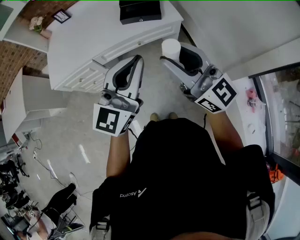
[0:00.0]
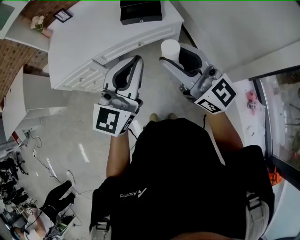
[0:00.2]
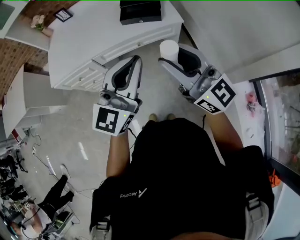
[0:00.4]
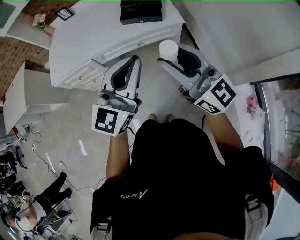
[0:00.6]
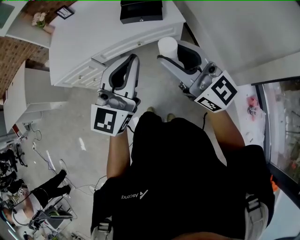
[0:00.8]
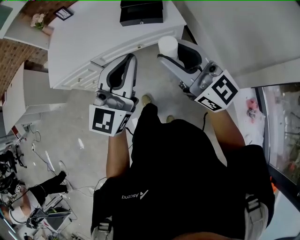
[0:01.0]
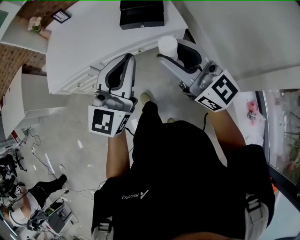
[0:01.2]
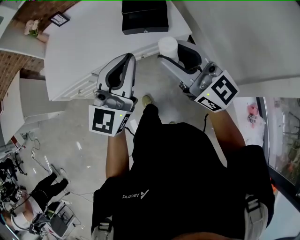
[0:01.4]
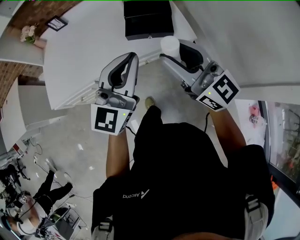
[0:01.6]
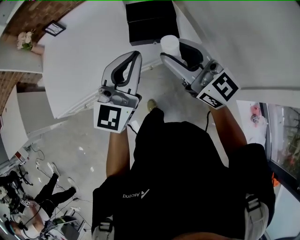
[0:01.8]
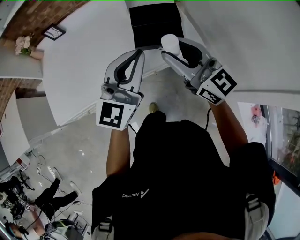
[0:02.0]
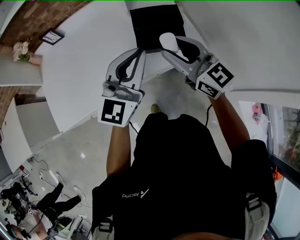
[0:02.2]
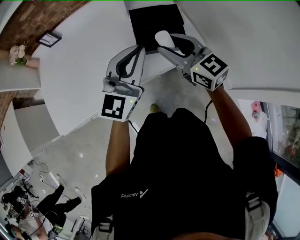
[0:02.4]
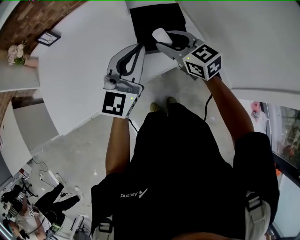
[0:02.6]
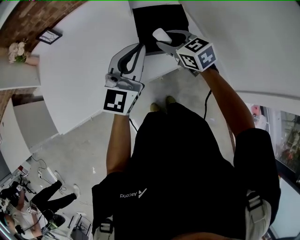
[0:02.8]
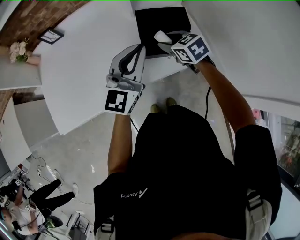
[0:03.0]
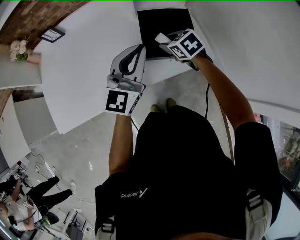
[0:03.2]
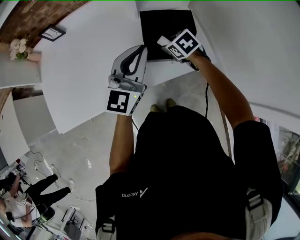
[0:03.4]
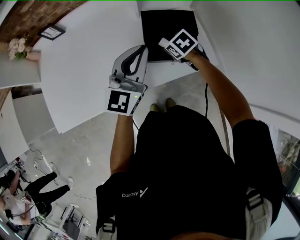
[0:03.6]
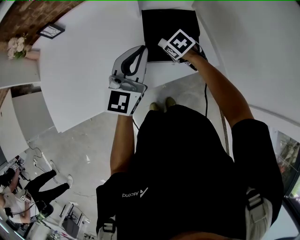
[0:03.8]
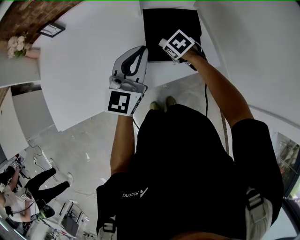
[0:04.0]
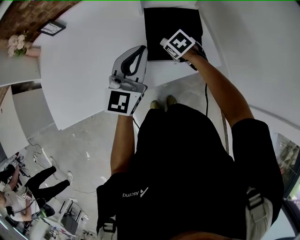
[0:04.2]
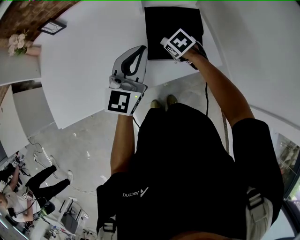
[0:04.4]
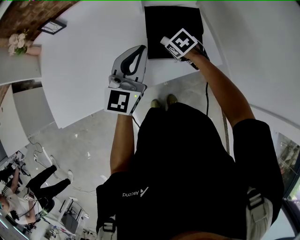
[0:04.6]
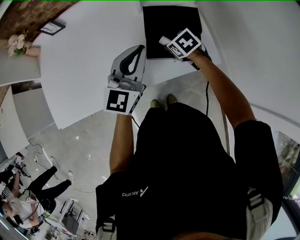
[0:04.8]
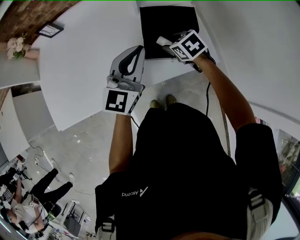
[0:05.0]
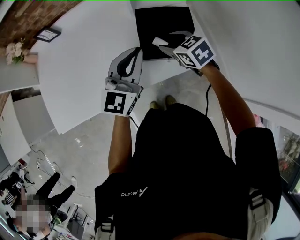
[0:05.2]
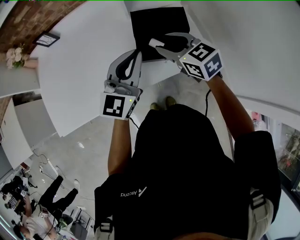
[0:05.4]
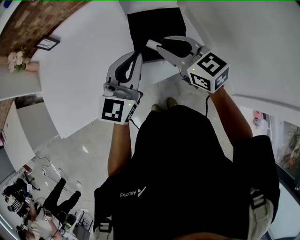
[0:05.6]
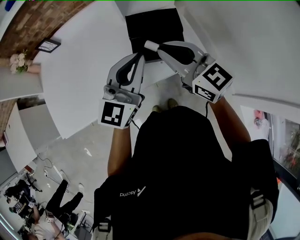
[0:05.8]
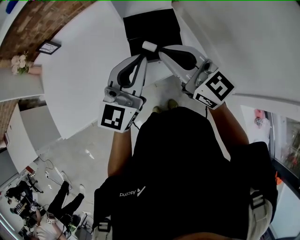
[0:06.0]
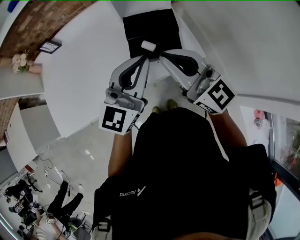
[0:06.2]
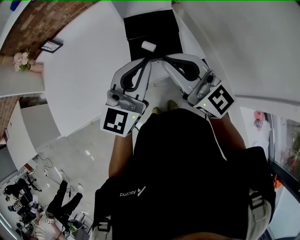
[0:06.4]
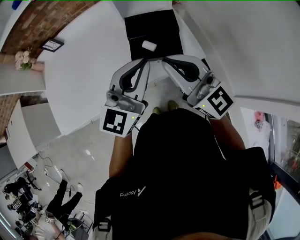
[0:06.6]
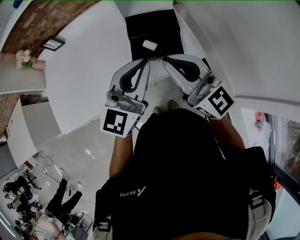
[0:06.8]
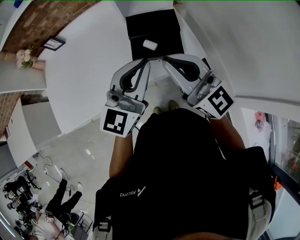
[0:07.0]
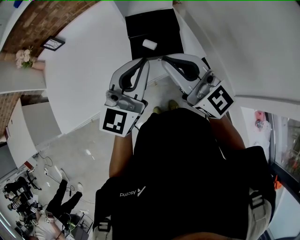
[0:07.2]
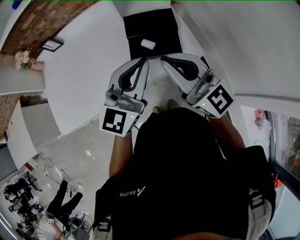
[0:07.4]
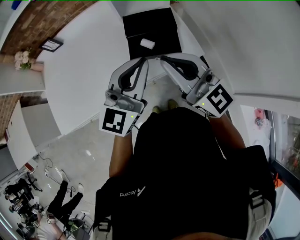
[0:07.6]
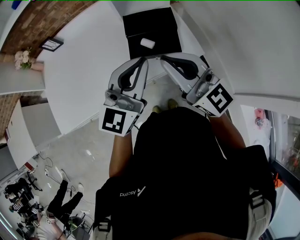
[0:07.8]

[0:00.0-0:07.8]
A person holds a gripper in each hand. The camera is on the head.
0:00.0 to 0:01.6: Both grippers travel together forward, roughly 20 cm.
0:01.6 to 0:03.2: The right gripper moves forward and downward, about 40 cm, and tips its fingers downward by some 60 degrees; the left gripper is displaced forward by some 20 cm.
0:03.2 to 0:04.6: The right gripper travels downward by some 10 cm.
0:04.6 to 0:06.2: The left gripper moves backward, upward and to the right, some 15 cm. Meanwhile the right gripper goes about 35 cm upward and backward, tips its fingers upward by approximately 80 degrees, and closes up.
0:06.2 to 0:07.8: The grippers move only a little.

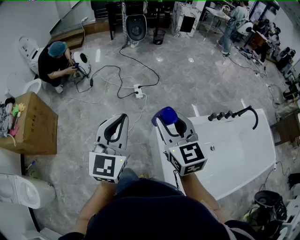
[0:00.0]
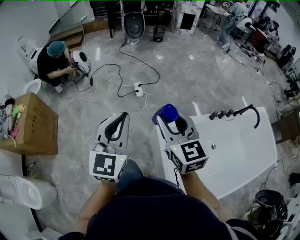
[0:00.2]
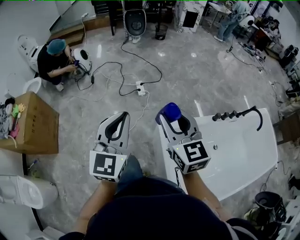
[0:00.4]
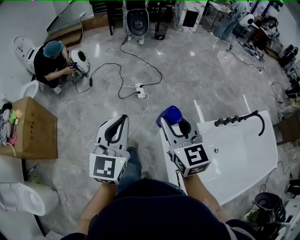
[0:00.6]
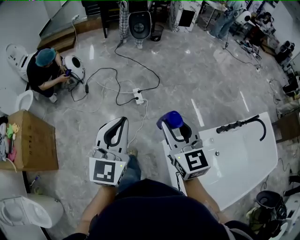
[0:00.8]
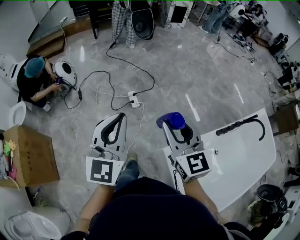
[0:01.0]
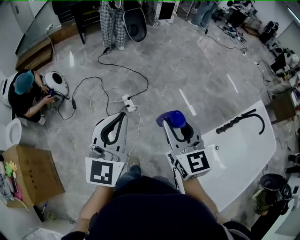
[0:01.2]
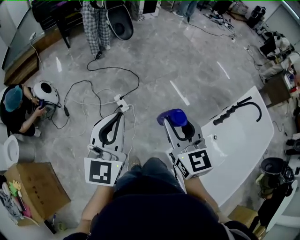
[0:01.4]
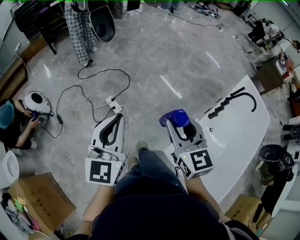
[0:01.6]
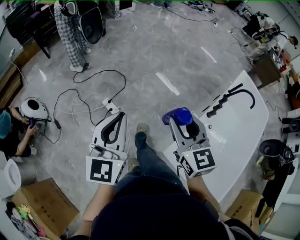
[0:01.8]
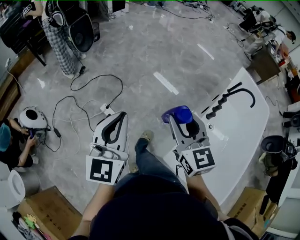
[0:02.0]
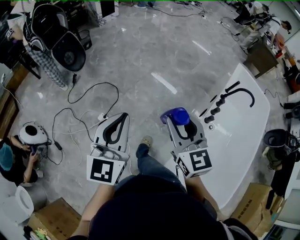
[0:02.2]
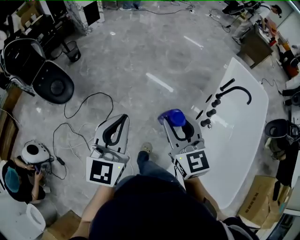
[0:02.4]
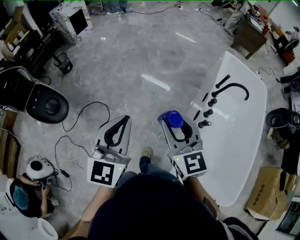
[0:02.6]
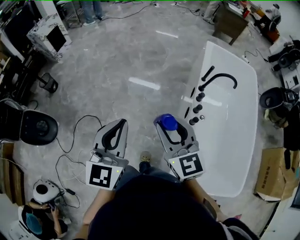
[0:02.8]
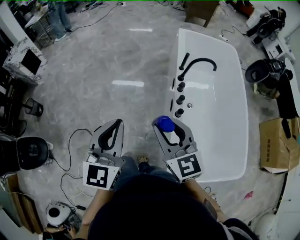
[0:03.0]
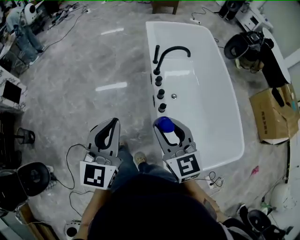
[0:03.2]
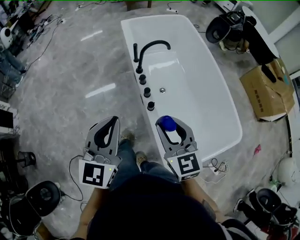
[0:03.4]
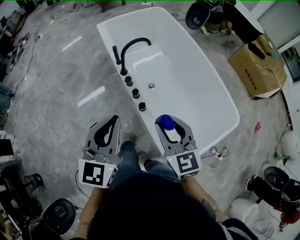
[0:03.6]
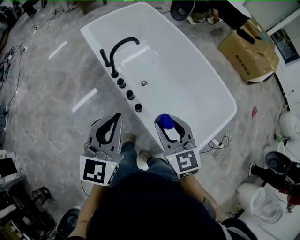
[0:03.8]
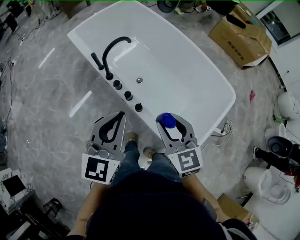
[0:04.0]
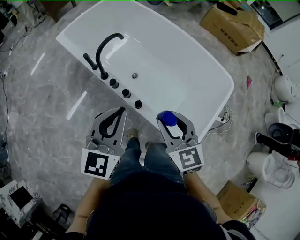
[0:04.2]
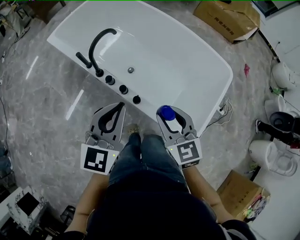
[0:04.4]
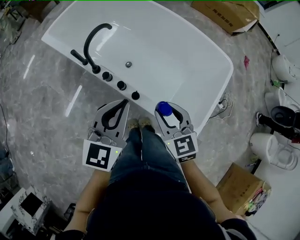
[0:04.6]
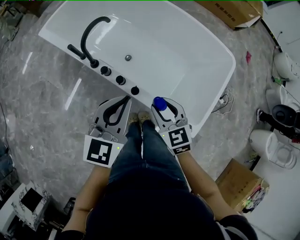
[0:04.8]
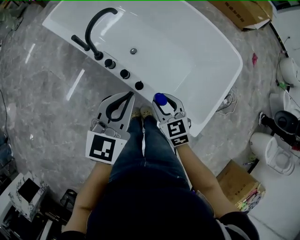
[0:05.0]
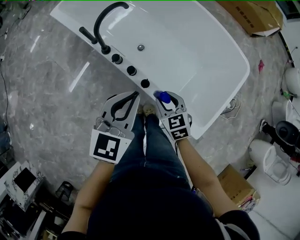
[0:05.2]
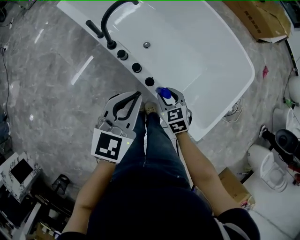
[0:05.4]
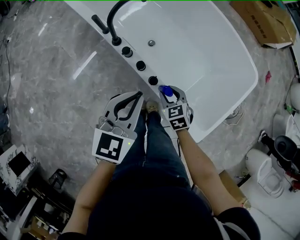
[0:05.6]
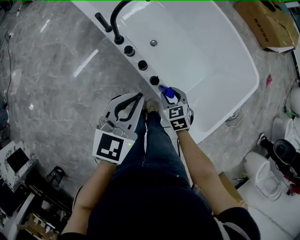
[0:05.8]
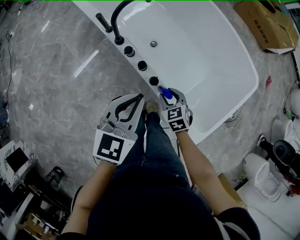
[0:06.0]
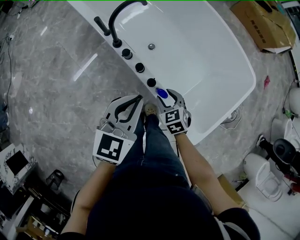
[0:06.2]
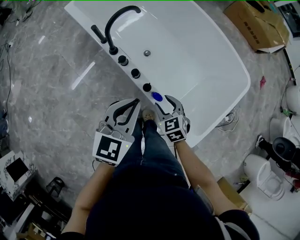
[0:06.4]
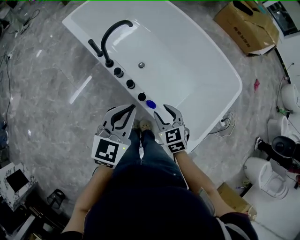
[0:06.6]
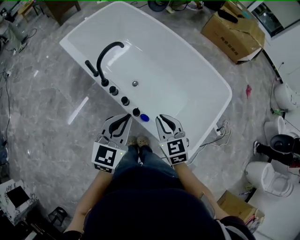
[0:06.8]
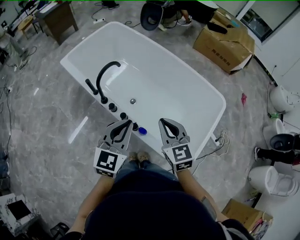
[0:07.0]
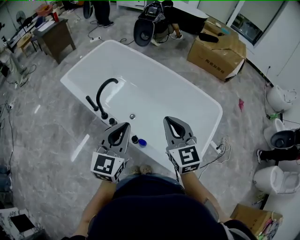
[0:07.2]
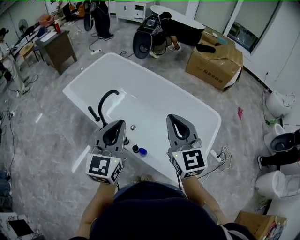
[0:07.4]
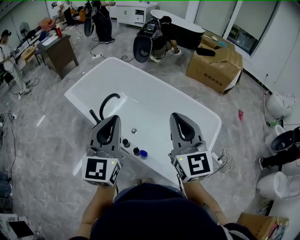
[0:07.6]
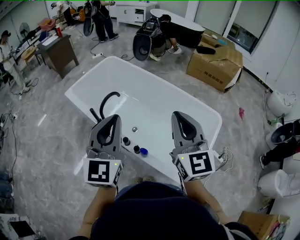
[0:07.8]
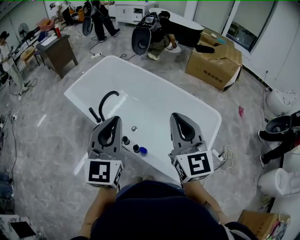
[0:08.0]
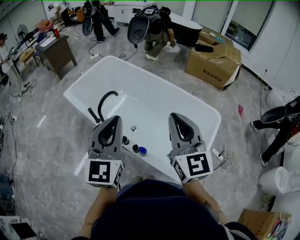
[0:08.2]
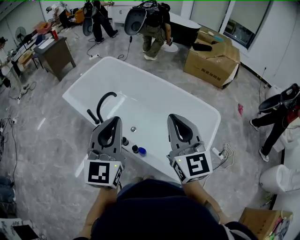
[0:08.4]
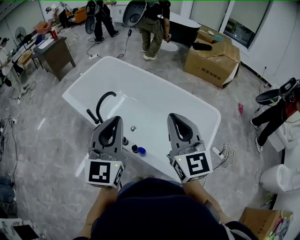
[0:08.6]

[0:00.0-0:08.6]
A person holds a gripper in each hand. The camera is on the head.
0:00.0 to 0:01.4: The grippers both shift forward by approximately 40 cm. The left gripper swivels approximately 20 degrees. The right gripper rotates about 20 degrees.
0:01.4 to 0:02.8: The left gripper changes place by about 40 cm, and swivels roughly 40 degrees; the right gripper changes place by about 35 cm, and turns by roughly 40 degrees.
0:02.8 to 0:04.4: The left gripper moves some 40 cm, and changes its angle by about 80 degrees. Meanwhile the right gripper changes place by some 30 cm, and turns by approximately 80 degrees.
0:04.4 to 0:05.8: The left gripper travels downward by some 10 cm, while the right gripper travels downward by about 25 cm, and turns by some 30 degrees.
0:05.8 to 0:07.2: The left gripper heads upward, covering approximately 15 cm. Meanwhile the right gripper goes approximately 35 cm upward, angles its fingers upward, by some 40 degrees, and closes.
0:07.2 to 0:08.6: Both grippers travel together upward, roughly 10 cm.

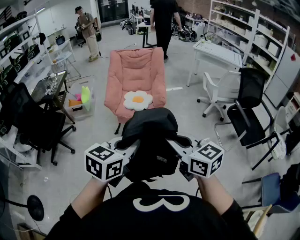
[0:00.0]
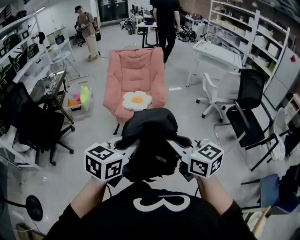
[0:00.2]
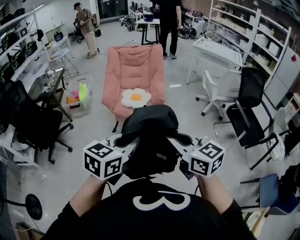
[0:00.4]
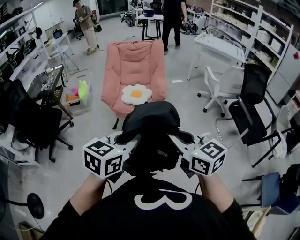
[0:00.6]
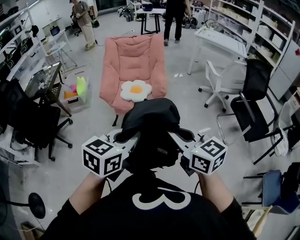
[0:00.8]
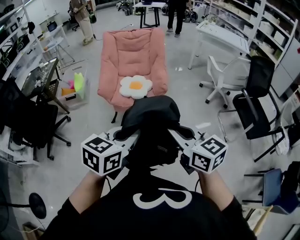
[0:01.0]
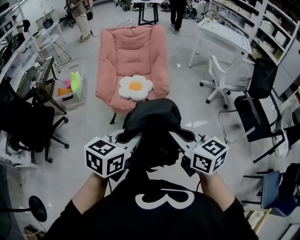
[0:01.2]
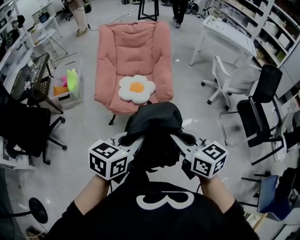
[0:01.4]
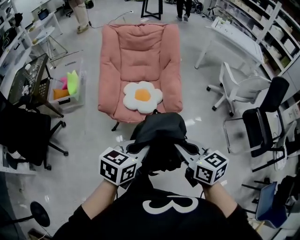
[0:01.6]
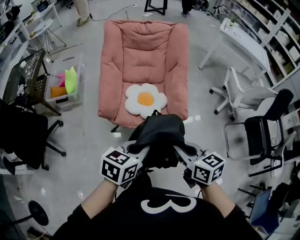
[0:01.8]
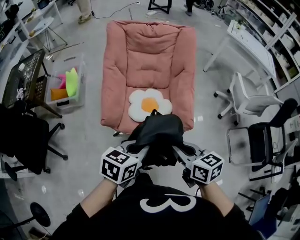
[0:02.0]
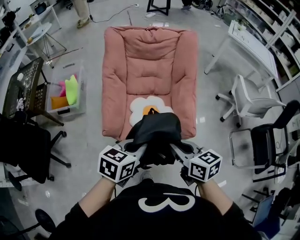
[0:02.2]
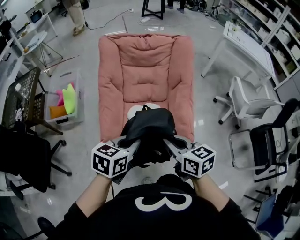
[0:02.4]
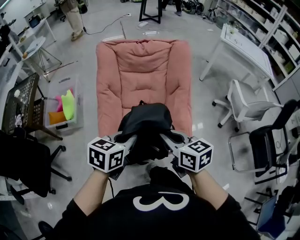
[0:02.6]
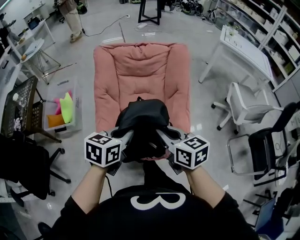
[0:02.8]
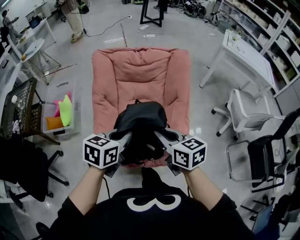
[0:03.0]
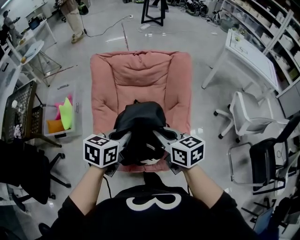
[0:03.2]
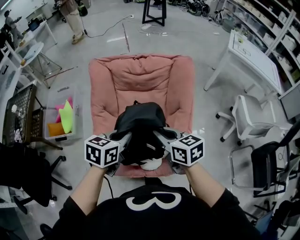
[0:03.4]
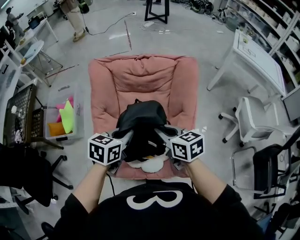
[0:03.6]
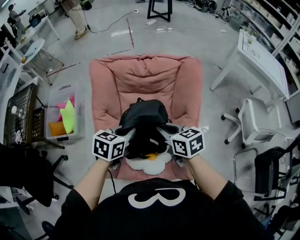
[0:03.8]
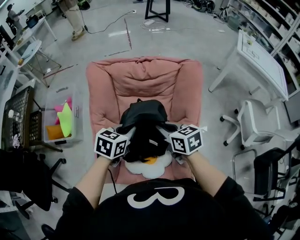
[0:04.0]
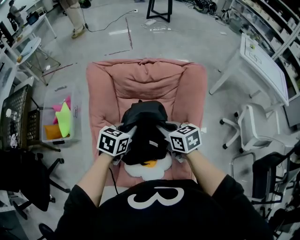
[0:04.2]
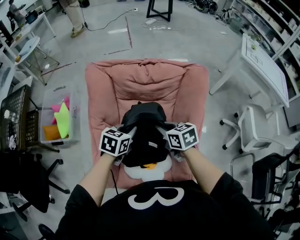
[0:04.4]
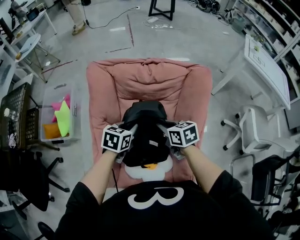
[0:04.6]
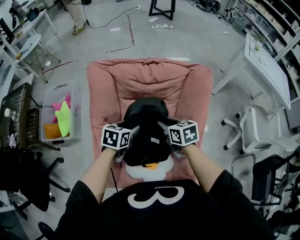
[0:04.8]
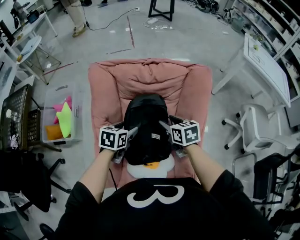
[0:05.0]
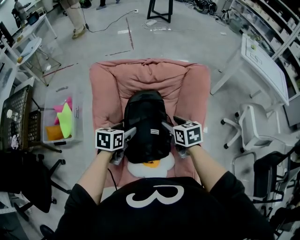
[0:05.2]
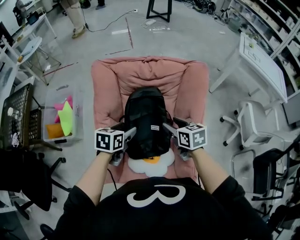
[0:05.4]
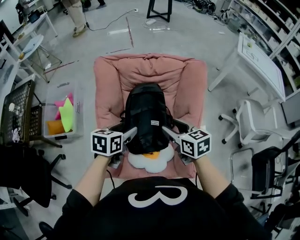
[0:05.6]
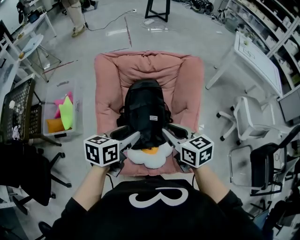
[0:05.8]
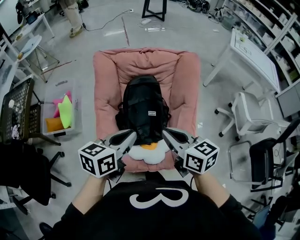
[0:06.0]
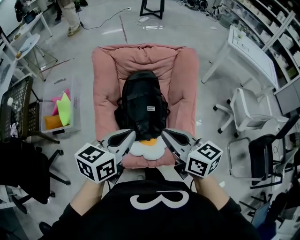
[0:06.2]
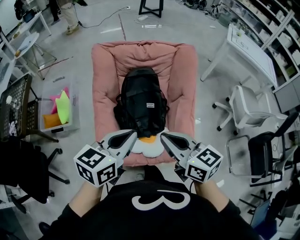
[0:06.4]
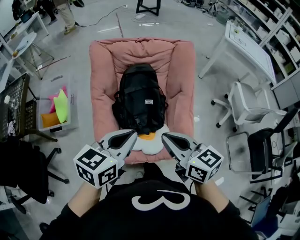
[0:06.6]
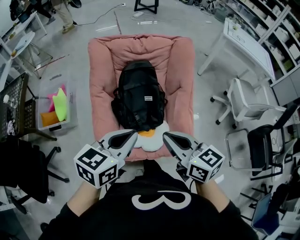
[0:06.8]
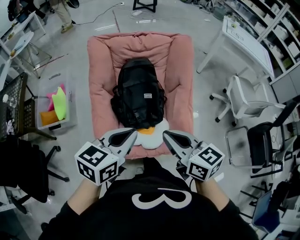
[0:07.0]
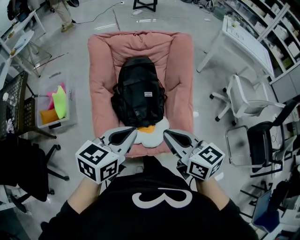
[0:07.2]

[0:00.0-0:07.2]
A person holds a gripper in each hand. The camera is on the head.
0:00.0 to 0:01.4: The grippers both shift forward by roughly 25 cm.
0:01.4 to 0:02.8: The two grippers travel together, forward, about 50 cm.
0:02.8 to 0:04.4: Both grippers move forward and downward, about 35 cm.
0:04.4 to 0:05.8: The two grippers go approximately 20 cm backward and upward. The right gripper opens, while the left gripper opens.
0:05.8 to 0:07.2: The grippers both shift backward by about 15 cm. The left gripper closes. The right gripper closes.
